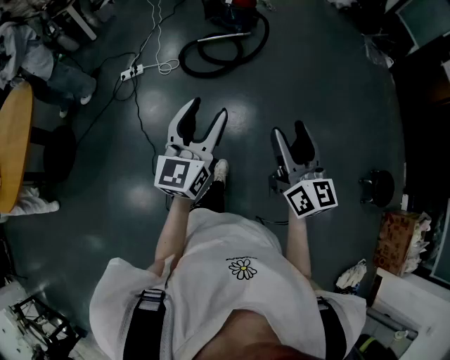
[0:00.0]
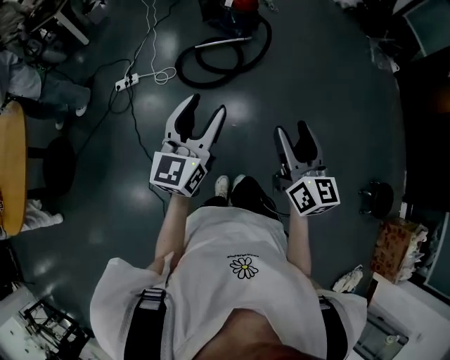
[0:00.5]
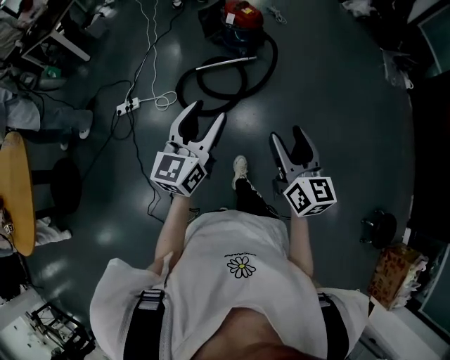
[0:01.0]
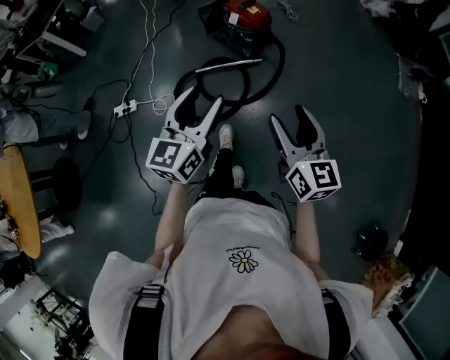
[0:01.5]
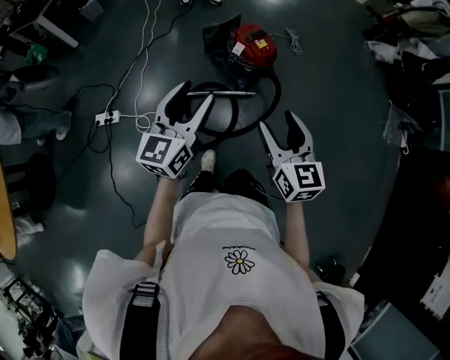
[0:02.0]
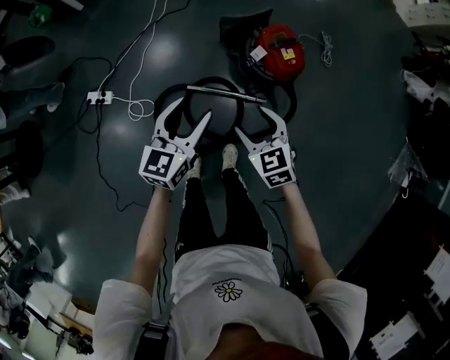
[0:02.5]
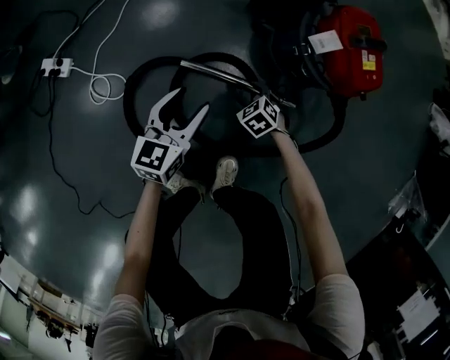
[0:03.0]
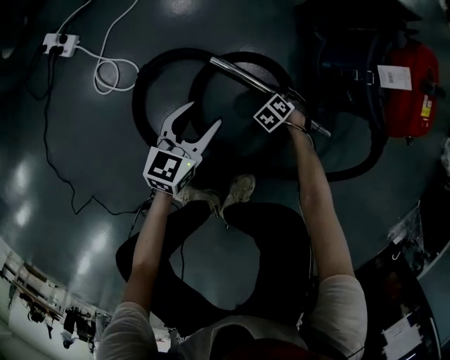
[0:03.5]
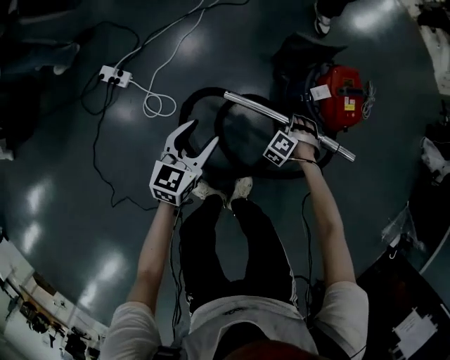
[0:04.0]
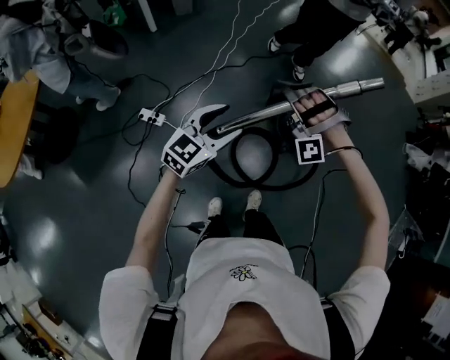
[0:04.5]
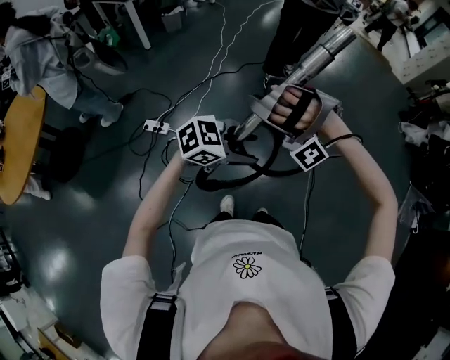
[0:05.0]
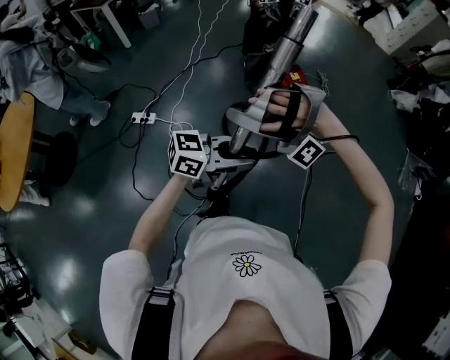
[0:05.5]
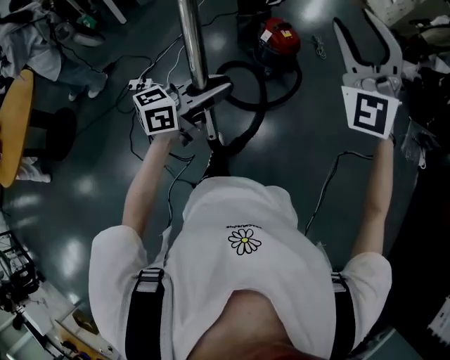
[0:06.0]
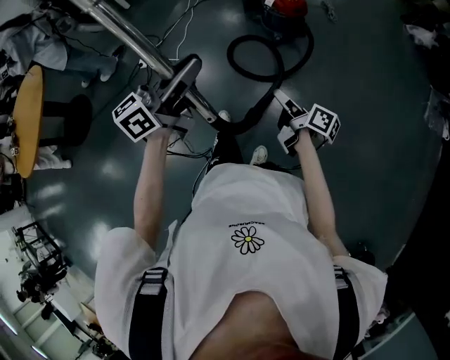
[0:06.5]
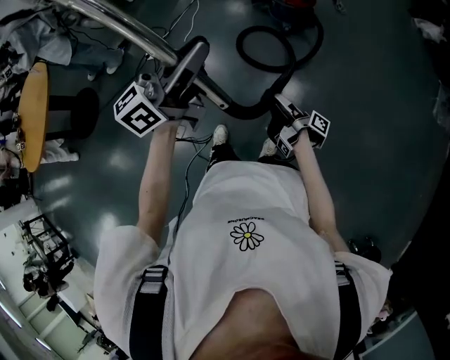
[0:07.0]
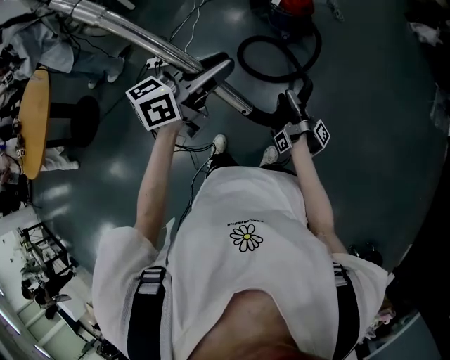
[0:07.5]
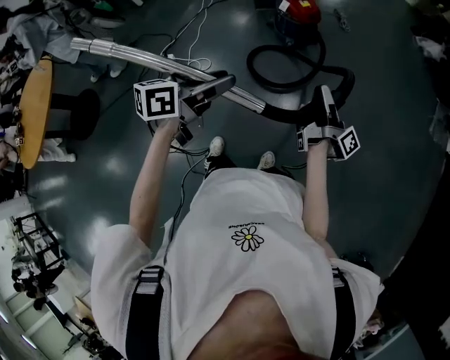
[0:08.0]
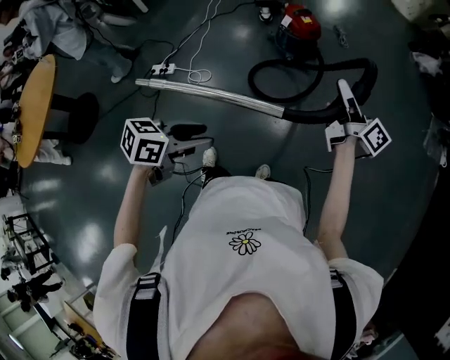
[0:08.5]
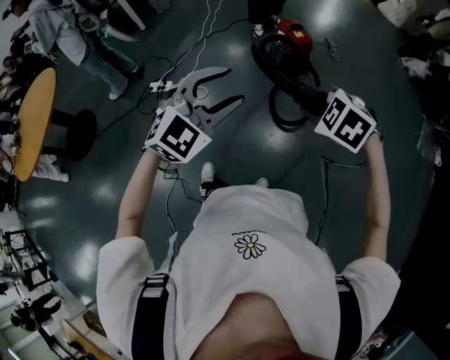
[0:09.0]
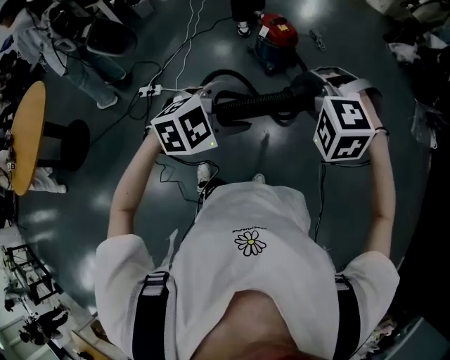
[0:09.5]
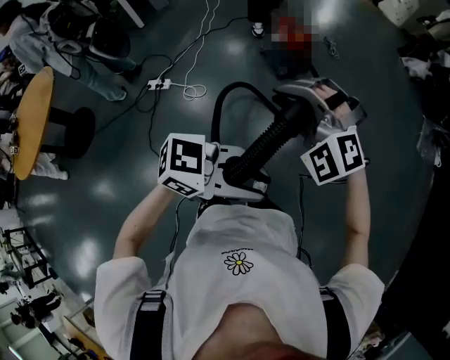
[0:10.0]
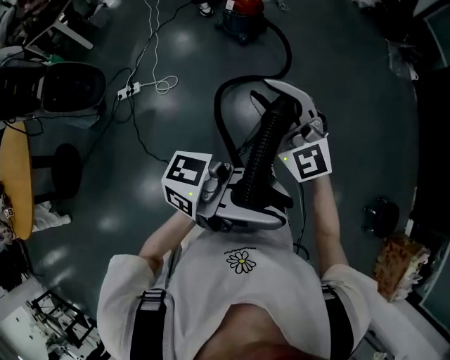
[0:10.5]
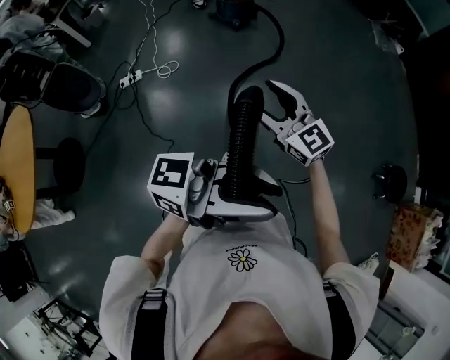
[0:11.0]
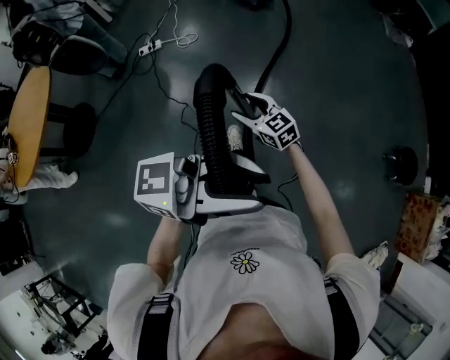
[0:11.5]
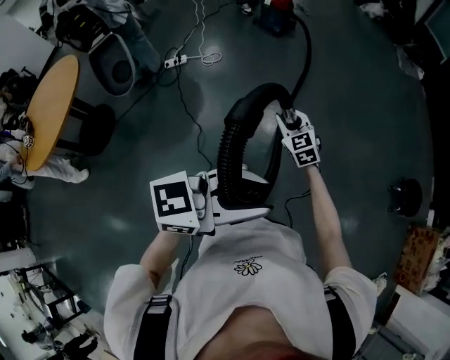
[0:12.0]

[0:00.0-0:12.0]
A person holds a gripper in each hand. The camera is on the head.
0:00.0 to 0:02.0: The left gripper moves roughly 90 cm.
0:02.0 to 0:04.0: The left gripper travels downward by roughly 40 cm, and rotates roughly 30 degrees.
0:04.0 to 0:06.0: The left gripper shifts by approximately 70 cm, rotates roughly 50 degrees, and closes its fingers.
0:06.0 to 0:08.0: The left gripper shifts by roughly 10 cm, and changes its angle by approximately 20 degrees.
0:08.0 to 0:10.0: The left gripper moves up and down over some 15 cm, changing direction 3 times, and rotates about 60 degrees.
0:10.0 to 0:12.0: The left gripper ends up roughly 70 cm from where it was.

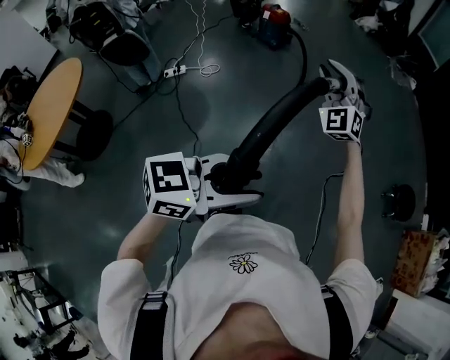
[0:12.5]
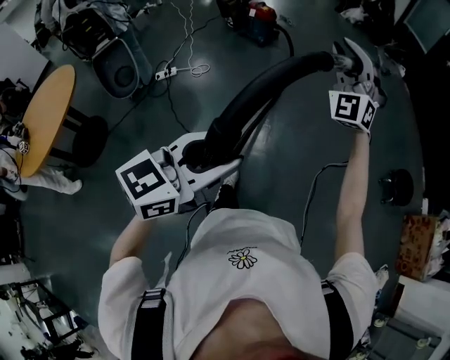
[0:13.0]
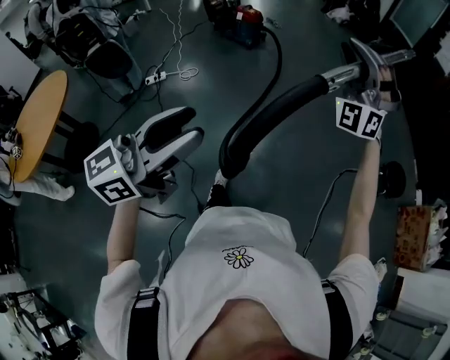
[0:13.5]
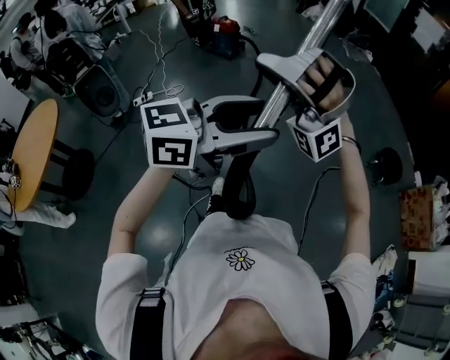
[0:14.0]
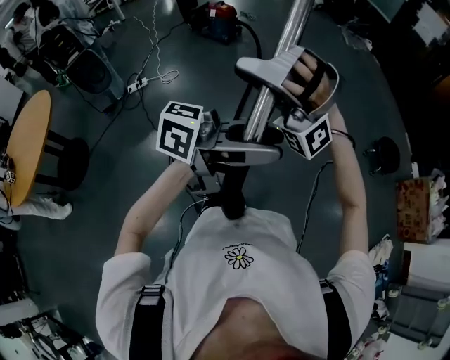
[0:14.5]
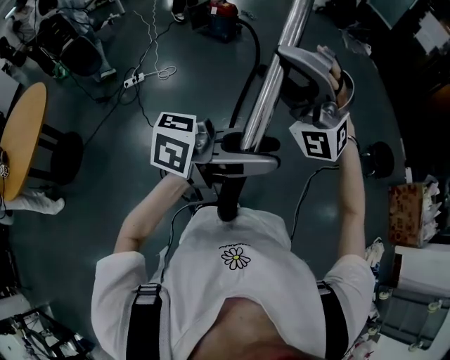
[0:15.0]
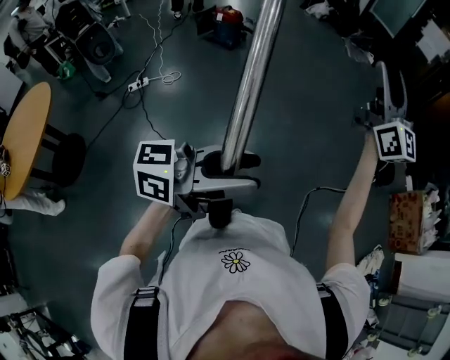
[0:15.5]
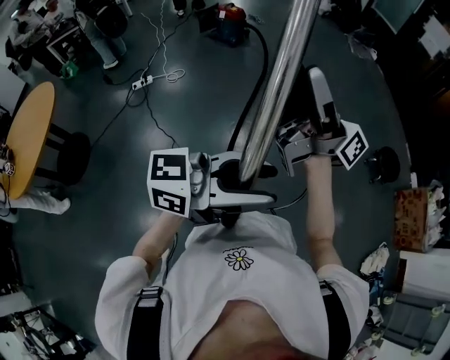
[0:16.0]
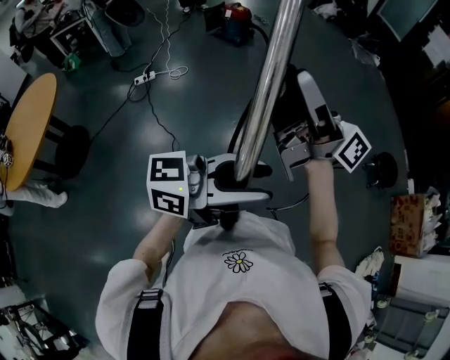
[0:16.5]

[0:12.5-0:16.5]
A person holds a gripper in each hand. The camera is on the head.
0:12.5 to 0:14.5: The left gripper changes place by some 15 cm, rotates about 40 degrees, and opens up.
0:14.5 to 0:16.5: The left gripper shifts by roughly 5 cm.

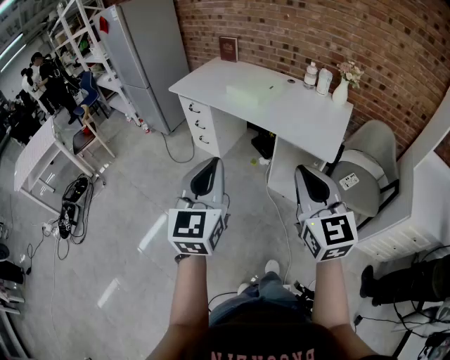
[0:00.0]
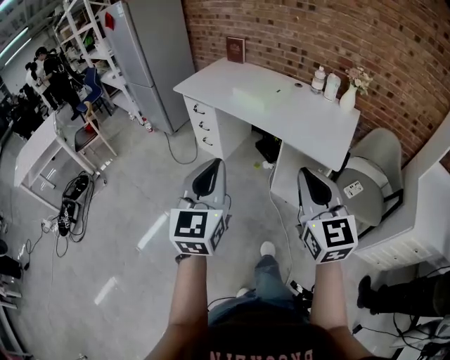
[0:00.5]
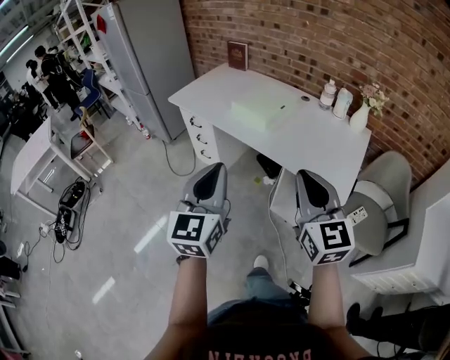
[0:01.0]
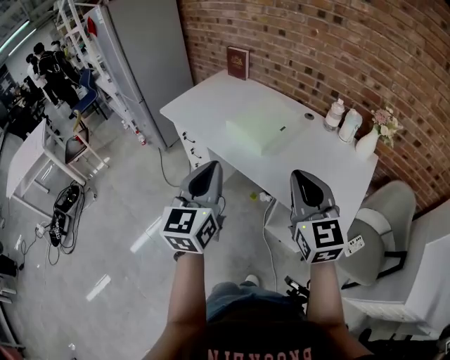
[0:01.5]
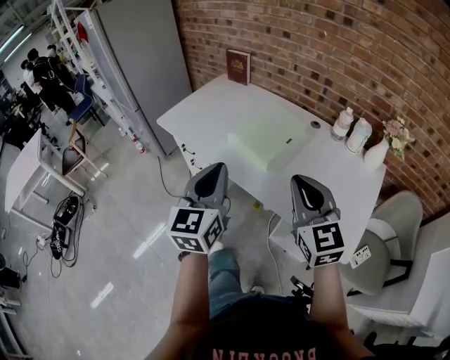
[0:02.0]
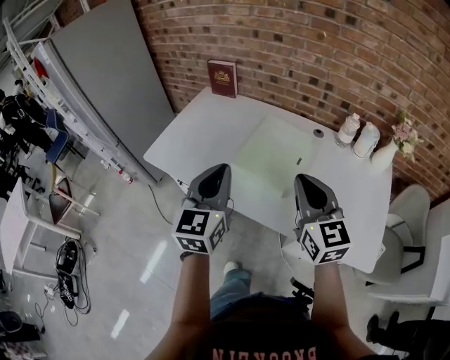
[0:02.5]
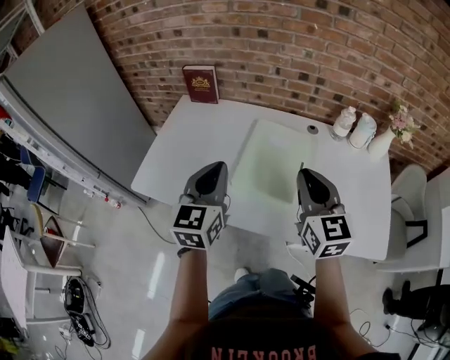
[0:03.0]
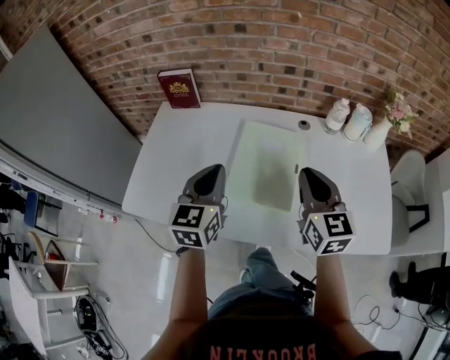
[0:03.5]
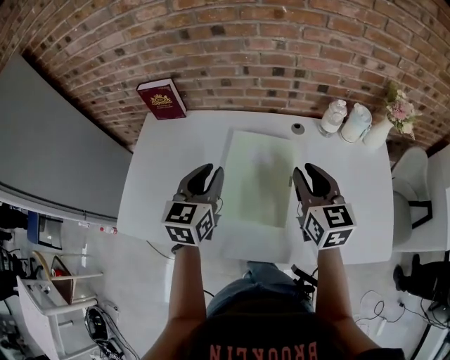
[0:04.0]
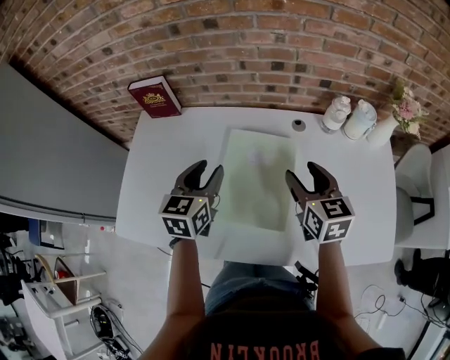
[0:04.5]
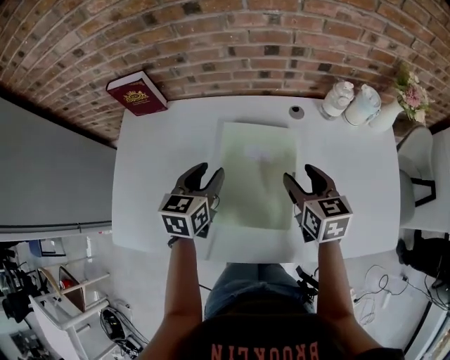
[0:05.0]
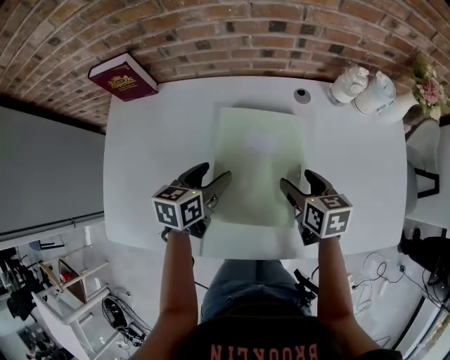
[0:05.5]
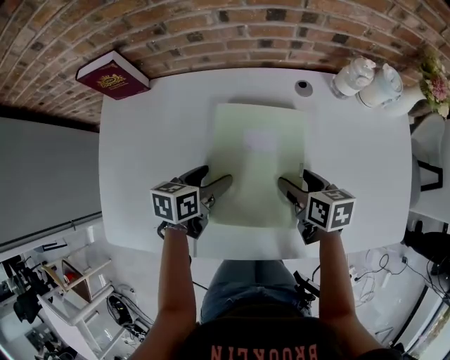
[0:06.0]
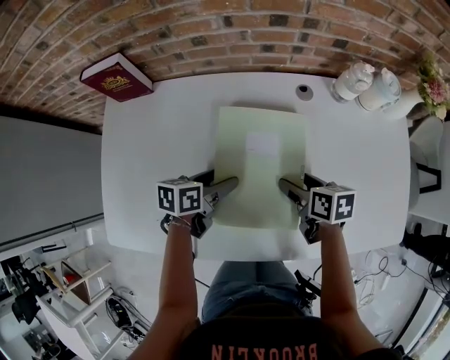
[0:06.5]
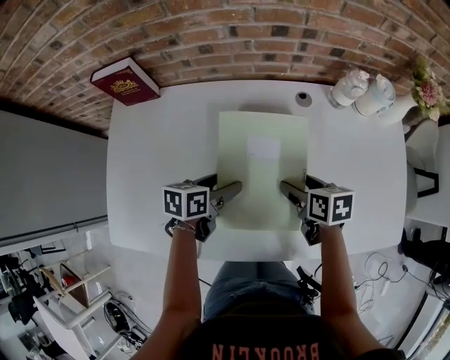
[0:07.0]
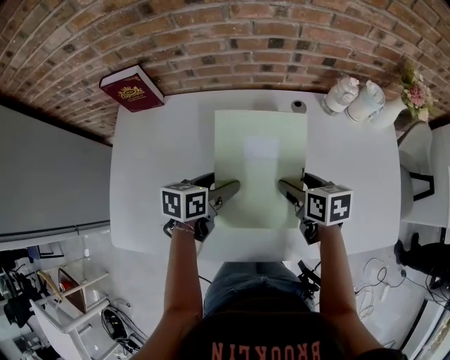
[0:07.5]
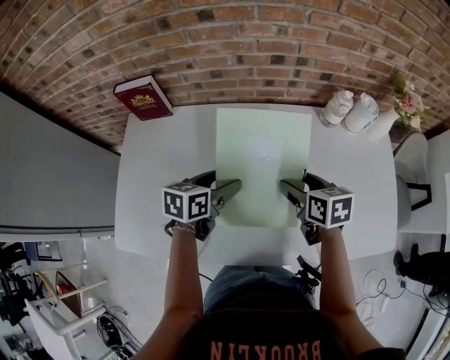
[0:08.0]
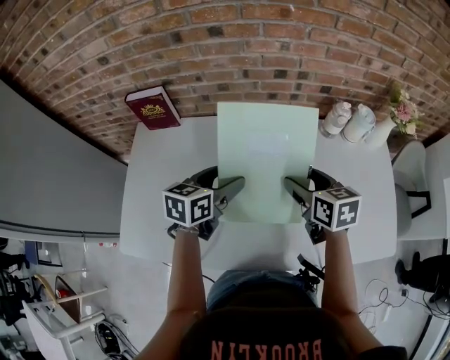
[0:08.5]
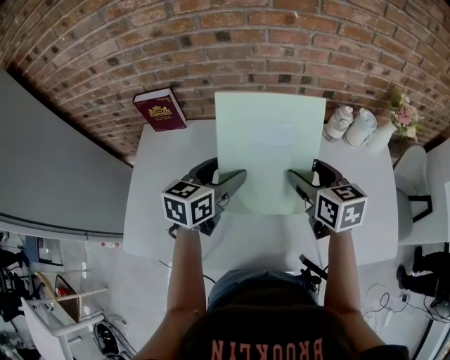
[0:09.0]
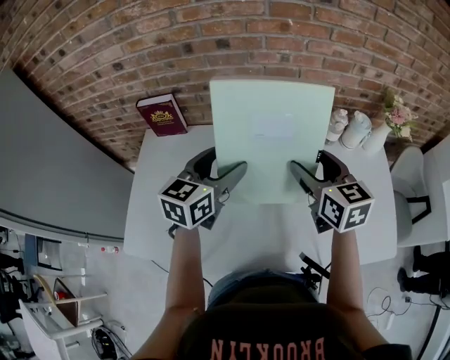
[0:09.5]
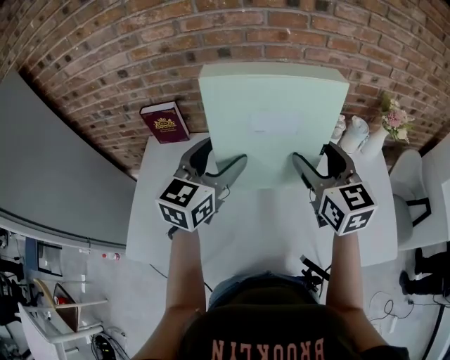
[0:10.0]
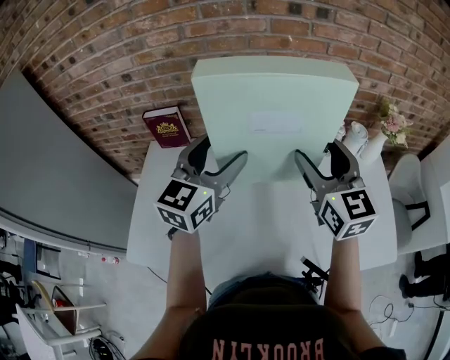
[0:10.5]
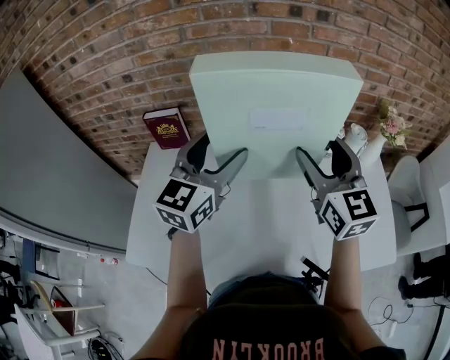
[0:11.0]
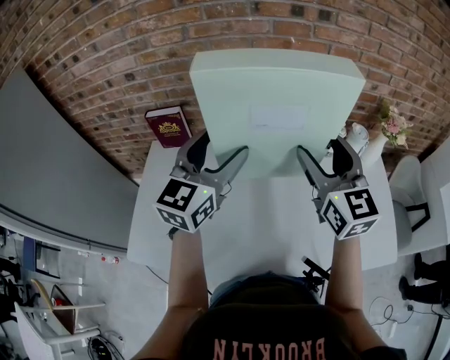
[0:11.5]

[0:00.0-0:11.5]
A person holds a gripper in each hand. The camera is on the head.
0:00.0 to 0:02.0: The two grippers travel together, forward, roughly 40 cm.
0:02.0 to 0:04.0: The left gripper ends up approximately 40 cm from where it was, and rotates about 40 degrees; the right gripper changes place by approximately 35 cm, and turns by roughly 40 degrees.
0:04.0 to 0:06.0: The grippers both shift downward by some 20 cm. The right gripper turns by about 40 degrees, and opens its fingers. Meanwhile the left gripper rotates about 50 degrees, and opens up.
0:06.0 to 0:07.5: The grippers both shift upward by roughly 5 cm.
0:07.5 to 0:09.5: The grippers both shift upward by some 20 cm. The right gripper changes its angle by approximately 40 degrees. Meanwhile the left gripper rotates approximately 40 degrees.
0:09.5 to 0:11.5: Both grippers travel together upward, about 10 cm. The right gripper changes its angle by roughly 20 degrees. The left gripper turns by some 20 degrees.
